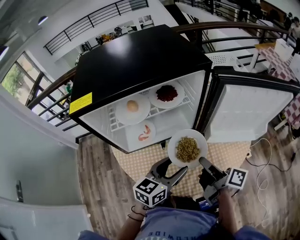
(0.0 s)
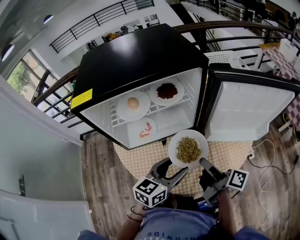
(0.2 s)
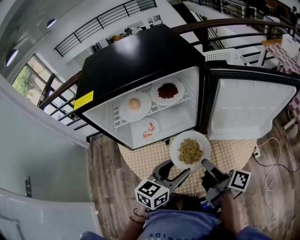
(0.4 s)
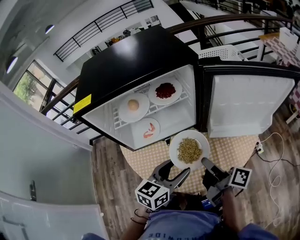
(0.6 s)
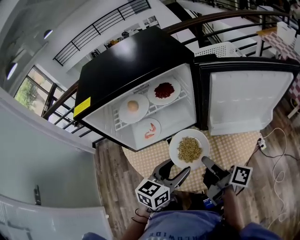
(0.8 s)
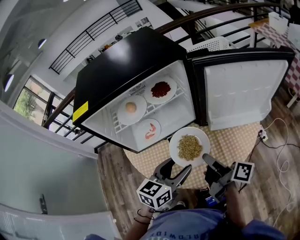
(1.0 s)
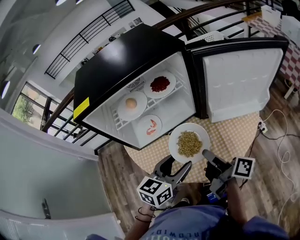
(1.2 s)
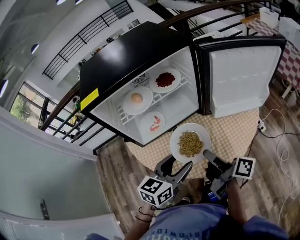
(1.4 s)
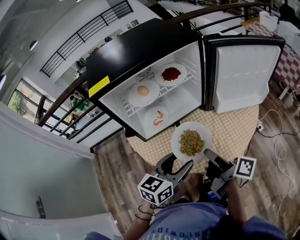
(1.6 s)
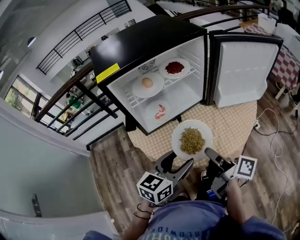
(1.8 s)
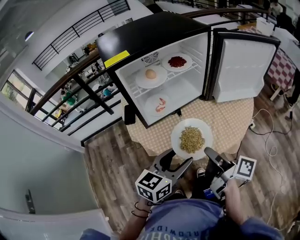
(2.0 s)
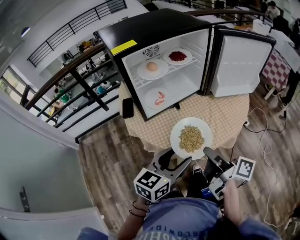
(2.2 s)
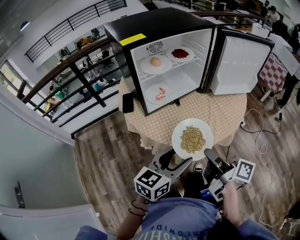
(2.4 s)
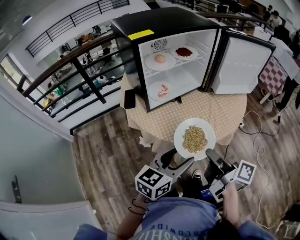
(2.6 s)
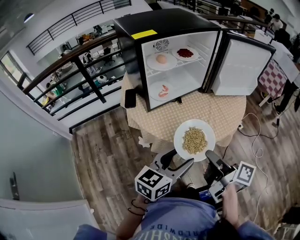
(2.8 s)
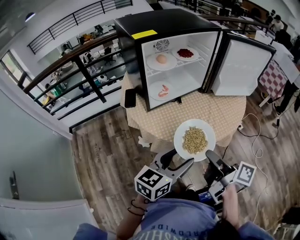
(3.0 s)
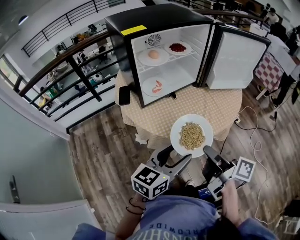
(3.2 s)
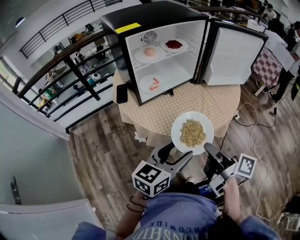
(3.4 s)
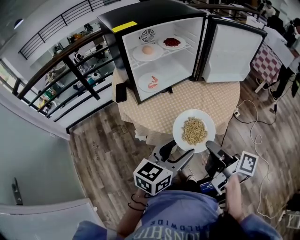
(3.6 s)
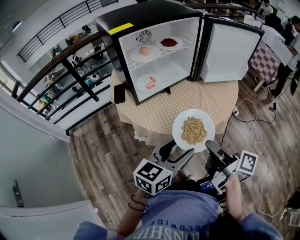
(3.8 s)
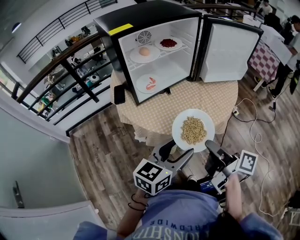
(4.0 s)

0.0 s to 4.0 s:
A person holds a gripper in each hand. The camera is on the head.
0.0 to 1.4 s: Both grippers travel together backward, about 5 cm.
1.4 to 2.6 s: The grippers both shift backward and to the left by about 20 cm.
2.6 to 4.0 s: There are only small adjustments of the grippers.

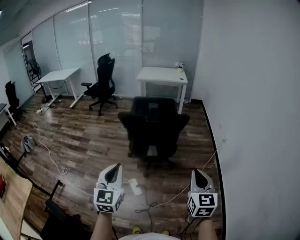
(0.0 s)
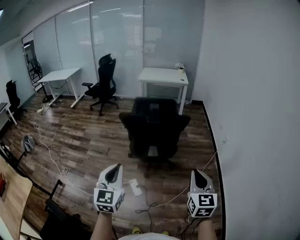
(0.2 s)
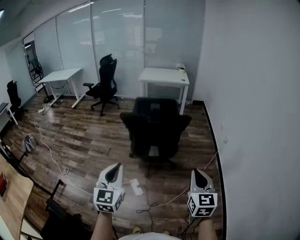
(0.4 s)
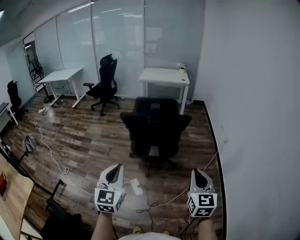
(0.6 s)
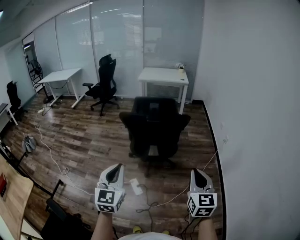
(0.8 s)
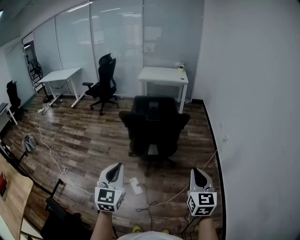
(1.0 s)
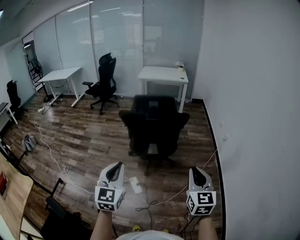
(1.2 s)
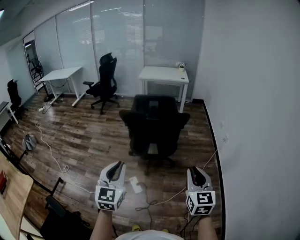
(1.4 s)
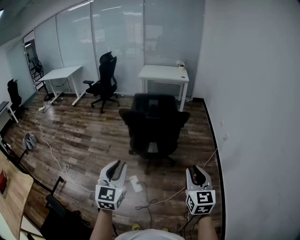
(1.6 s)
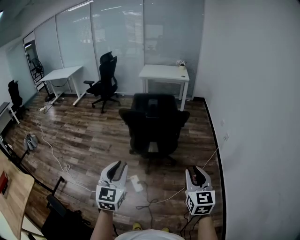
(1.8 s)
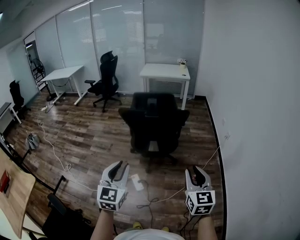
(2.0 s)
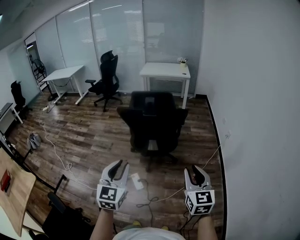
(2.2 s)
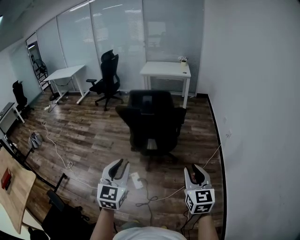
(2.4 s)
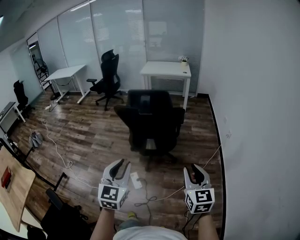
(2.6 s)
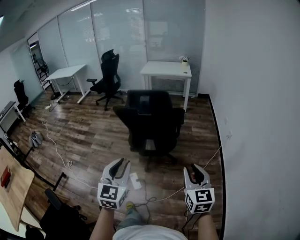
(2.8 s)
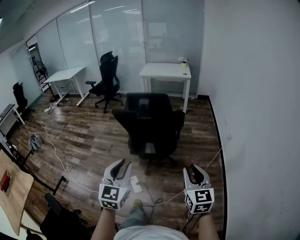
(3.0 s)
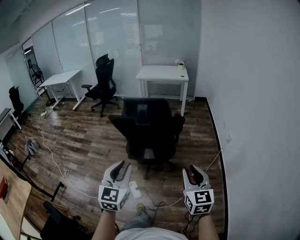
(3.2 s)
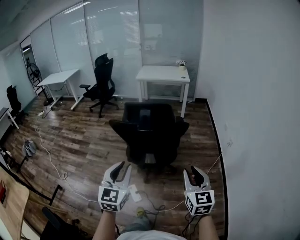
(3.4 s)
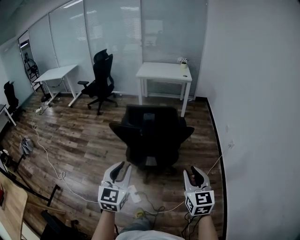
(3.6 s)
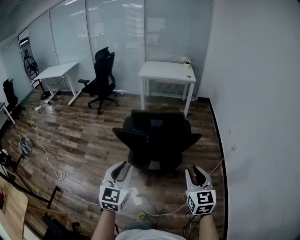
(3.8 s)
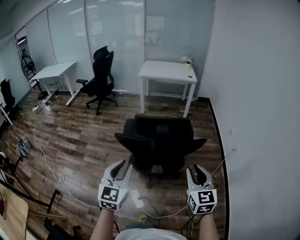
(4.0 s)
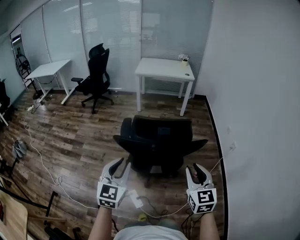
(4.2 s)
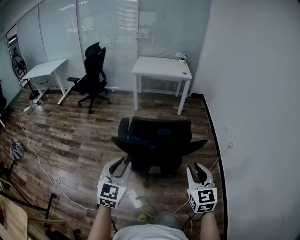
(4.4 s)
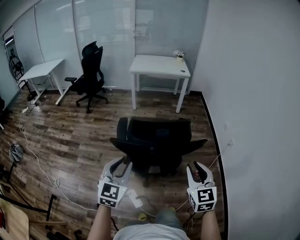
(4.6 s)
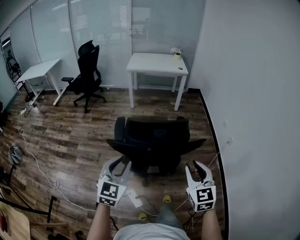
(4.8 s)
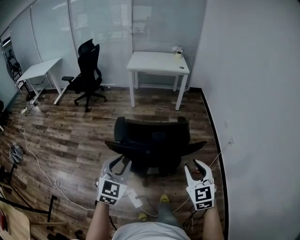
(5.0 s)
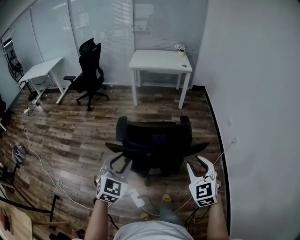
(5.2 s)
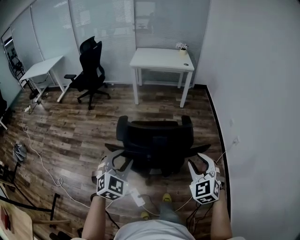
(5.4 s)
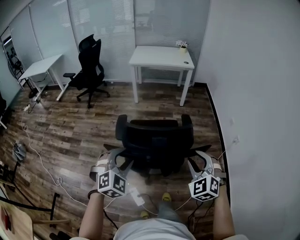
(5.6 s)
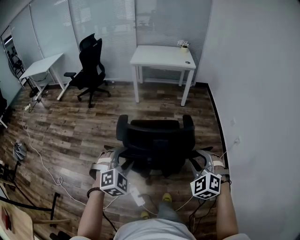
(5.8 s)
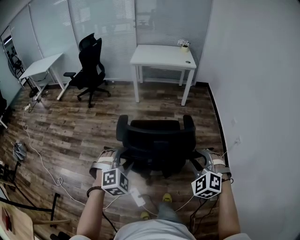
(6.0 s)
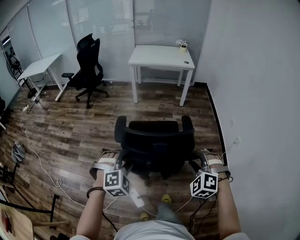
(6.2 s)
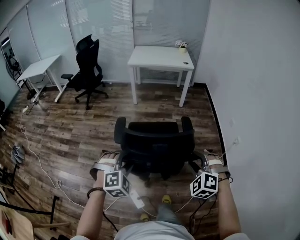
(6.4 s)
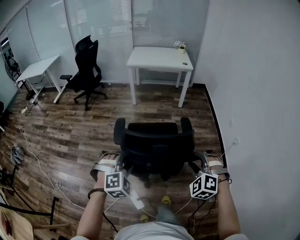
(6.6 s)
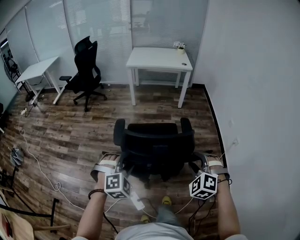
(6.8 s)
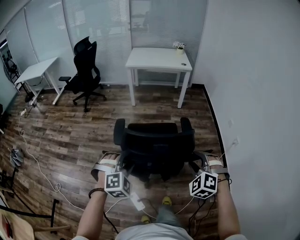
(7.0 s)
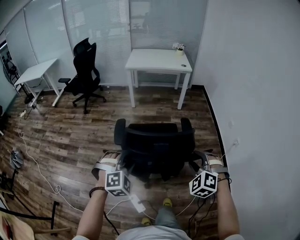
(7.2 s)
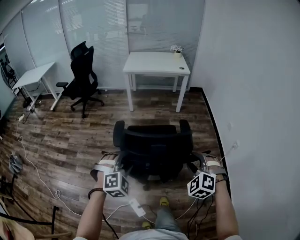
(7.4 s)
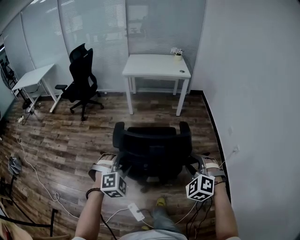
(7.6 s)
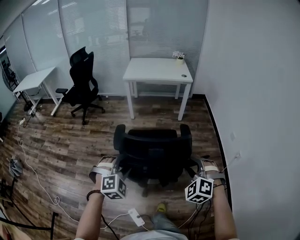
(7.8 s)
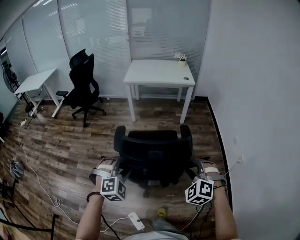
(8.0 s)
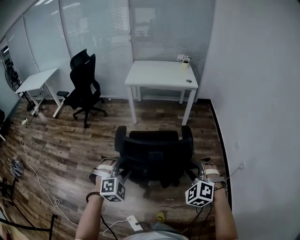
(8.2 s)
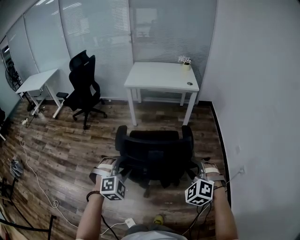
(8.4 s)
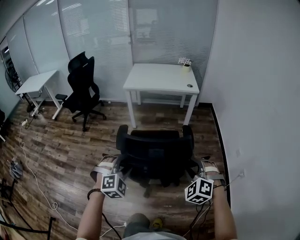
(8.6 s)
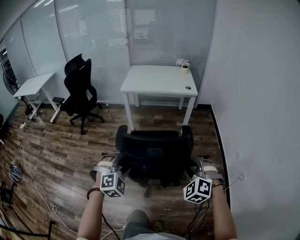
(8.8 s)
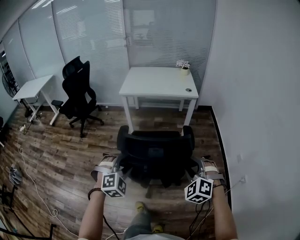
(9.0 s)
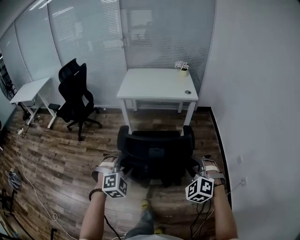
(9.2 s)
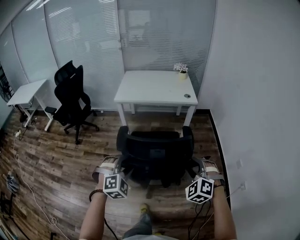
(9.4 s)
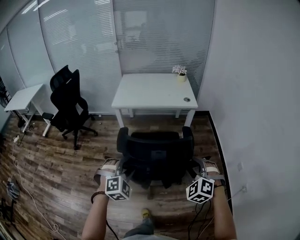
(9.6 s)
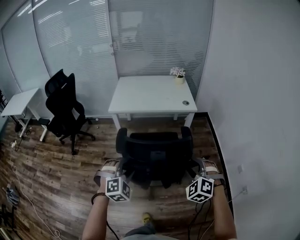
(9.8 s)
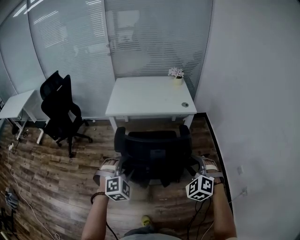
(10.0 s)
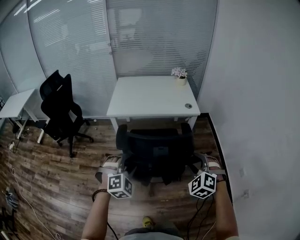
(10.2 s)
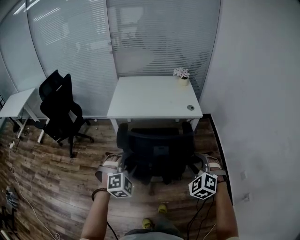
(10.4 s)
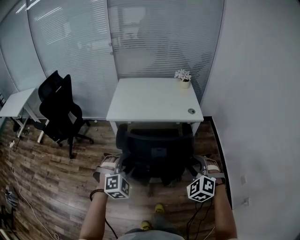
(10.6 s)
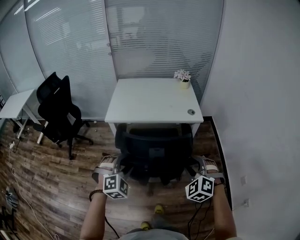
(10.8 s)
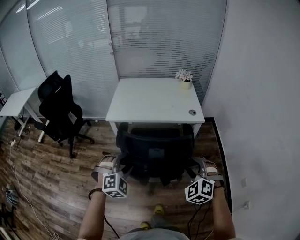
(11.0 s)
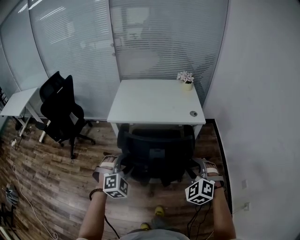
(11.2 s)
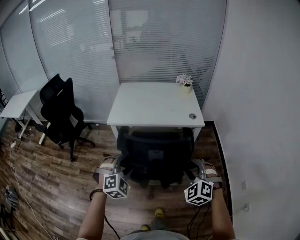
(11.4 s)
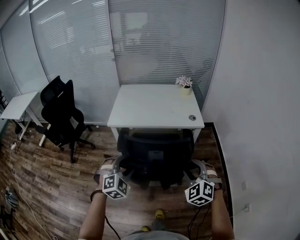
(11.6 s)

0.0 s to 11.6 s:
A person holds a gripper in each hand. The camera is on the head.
0.0 to 1.4 s: The grippers stay close to where they were, moving slightly.
1.4 to 2.8 s: The two grippers go roughly 10 cm to the right.
2.8 to 4.4 s: The grippers both shift forward and to the left by some 35 cm.
4.4 to 5.8 s: The right gripper shifts about 15 cm forward, and twists approximately 50 degrees counterclockwise, seen from behind. Meanwhile the left gripper shifts some 15 cm forward and downward, rolls clockwise, seen from behind, by some 40 degrees, and opens its fingers.
5.8 to 7.2 s: The left gripper shifts approximately 5 cm forward. Meanwhile the right gripper moves some 5 cm.
7.2 to 8.8 s: The grippers both shift forward by roughly 35 cm.
8.8 to 10.2 s: Both grippers move forward, roughly 35 cm.
10.2 to 11.6 s: Both grippers move forward, about 10 cm.

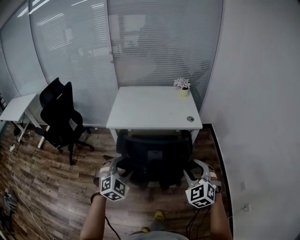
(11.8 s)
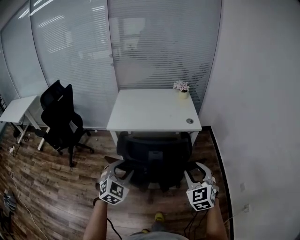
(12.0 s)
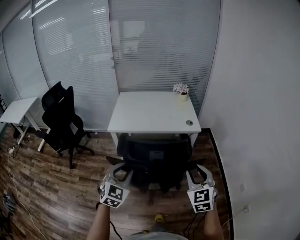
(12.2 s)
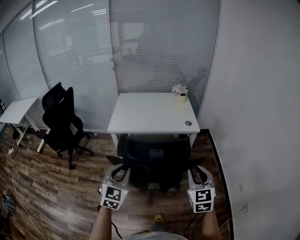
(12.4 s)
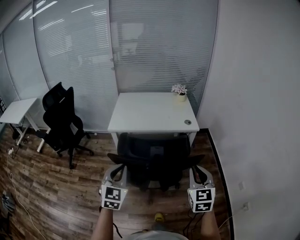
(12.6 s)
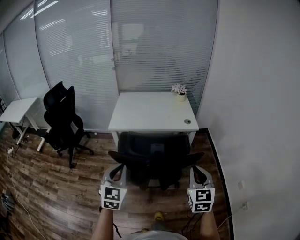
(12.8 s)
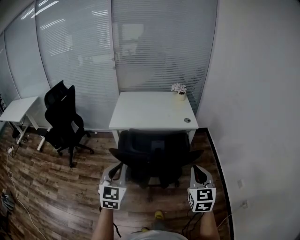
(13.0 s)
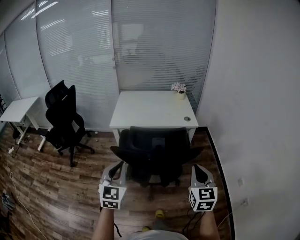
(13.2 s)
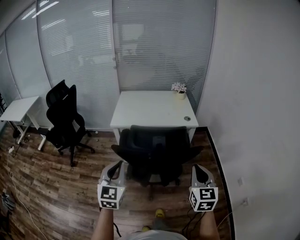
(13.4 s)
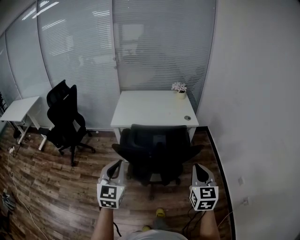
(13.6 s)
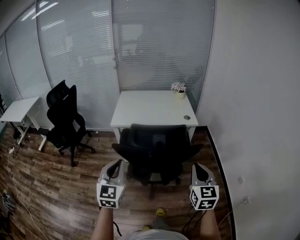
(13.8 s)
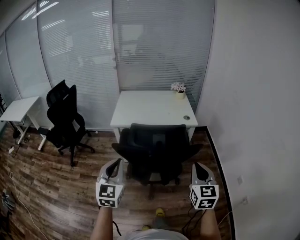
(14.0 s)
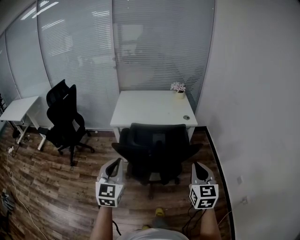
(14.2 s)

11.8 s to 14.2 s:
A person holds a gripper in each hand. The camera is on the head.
11.8 to 13.0 s: The right gripper shifts about 10 cm backward, swivels approximately 40 degrees, and closes its fingers. The left gripper is displaced backward and upward by roughly 15 cm, changes its angle by roughly 40 degrees, and closes.
13.0 to 14.2 s: The grippers stay close to where they were, moving slightly.

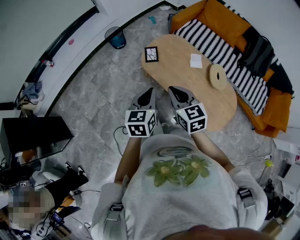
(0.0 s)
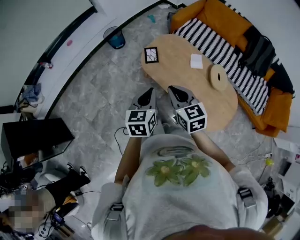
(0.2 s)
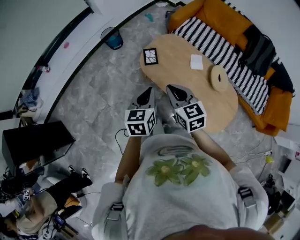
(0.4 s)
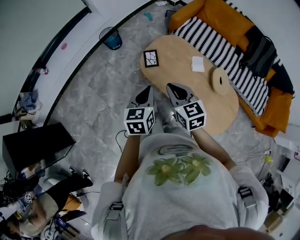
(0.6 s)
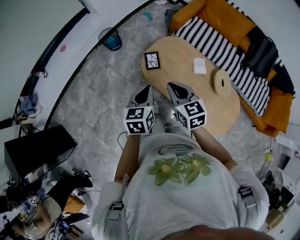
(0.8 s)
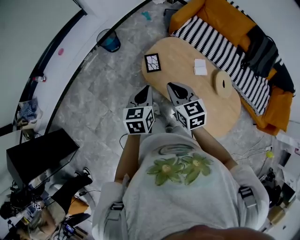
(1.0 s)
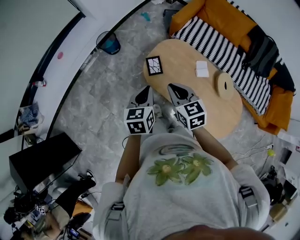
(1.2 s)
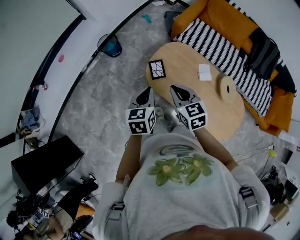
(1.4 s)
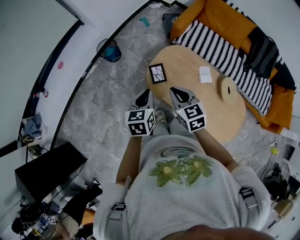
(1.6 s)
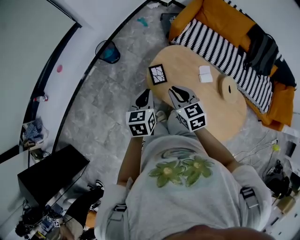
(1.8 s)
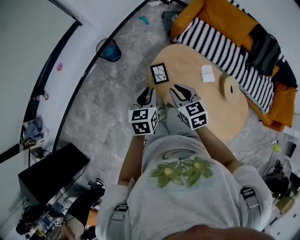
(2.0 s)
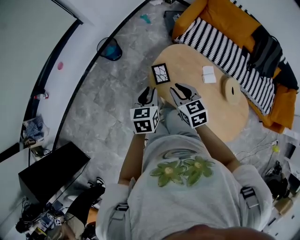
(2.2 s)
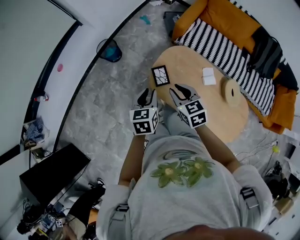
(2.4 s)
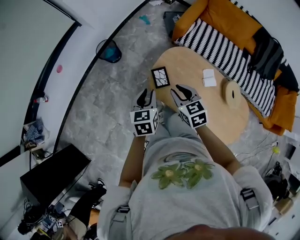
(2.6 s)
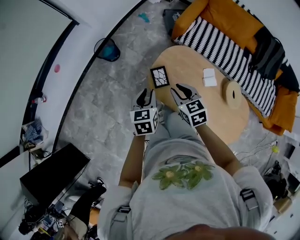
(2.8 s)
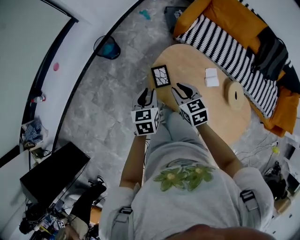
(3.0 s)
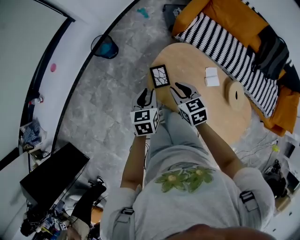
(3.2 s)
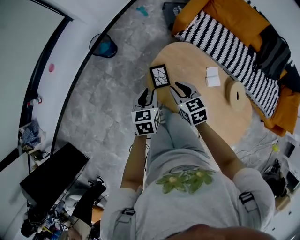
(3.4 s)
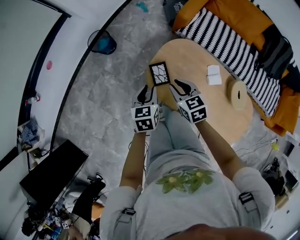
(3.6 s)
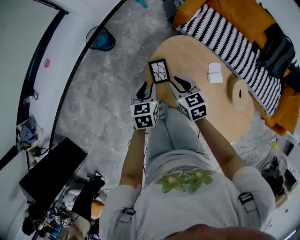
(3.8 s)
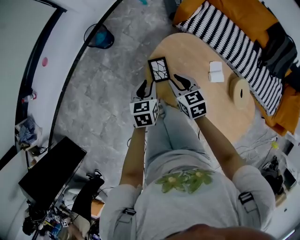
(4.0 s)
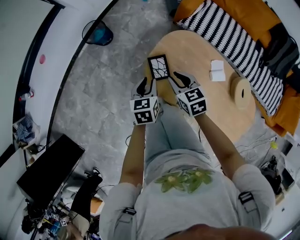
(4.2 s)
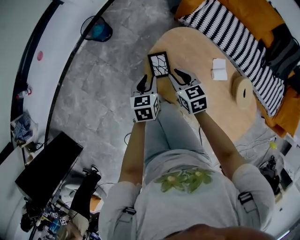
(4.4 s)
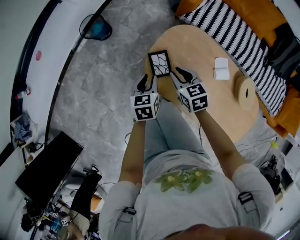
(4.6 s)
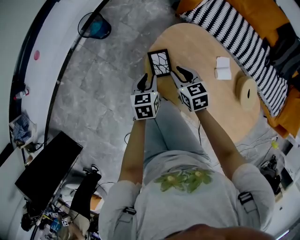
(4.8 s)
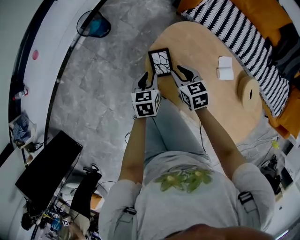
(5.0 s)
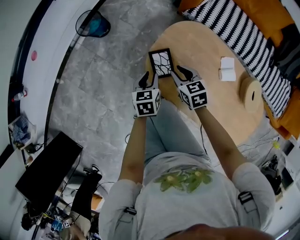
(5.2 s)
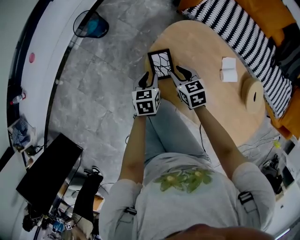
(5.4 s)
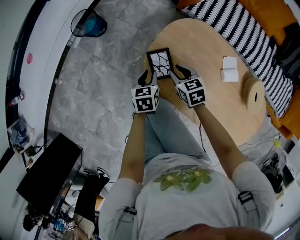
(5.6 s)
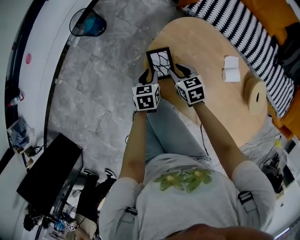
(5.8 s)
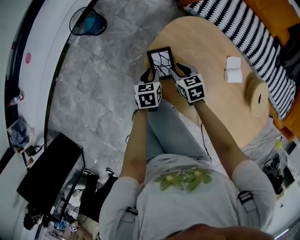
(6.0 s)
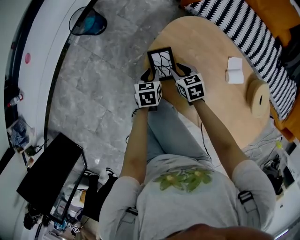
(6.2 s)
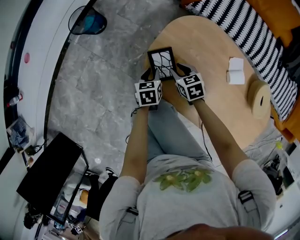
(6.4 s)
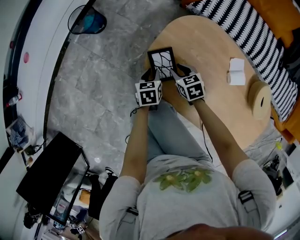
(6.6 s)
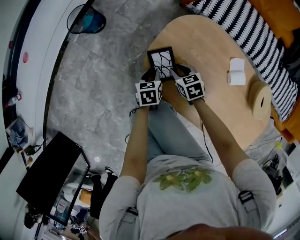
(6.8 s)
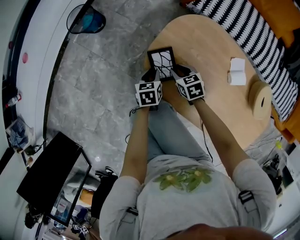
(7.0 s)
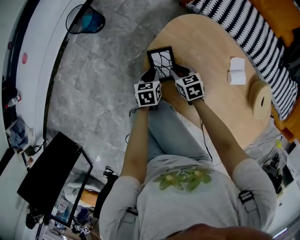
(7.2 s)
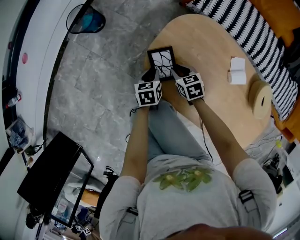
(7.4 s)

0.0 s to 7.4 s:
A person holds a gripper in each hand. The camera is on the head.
0.0 to 1.4 s: The two grippers go some 25 cm forward.
1.4 to 3.0 s: The two grippers go roughly 15 cm forward and downward. The left gripper opens.
3.0 to 4.4 s: The grippers both shift downward by about 15 cm.
4.4 to 6.0 s: The grippers both shift downward by about 20 cm.
6.0 to 7.4 s: Both grippers travel together downward, about 5 cm.
